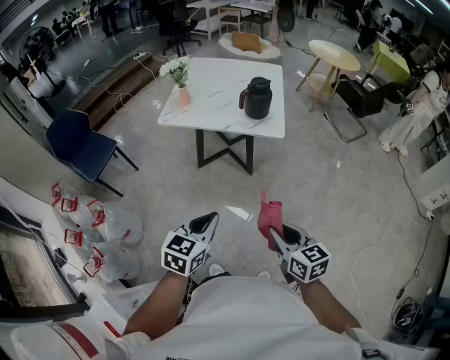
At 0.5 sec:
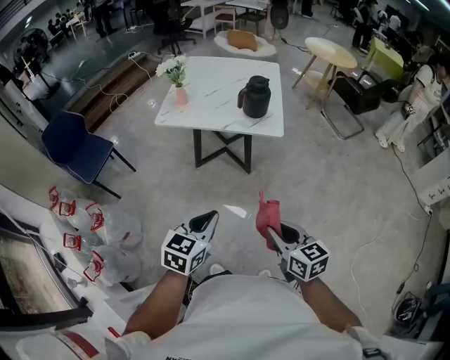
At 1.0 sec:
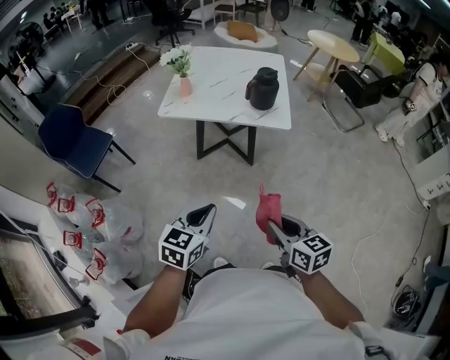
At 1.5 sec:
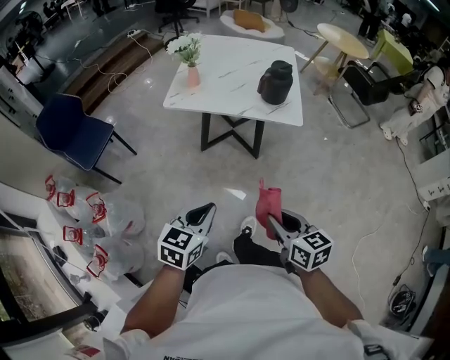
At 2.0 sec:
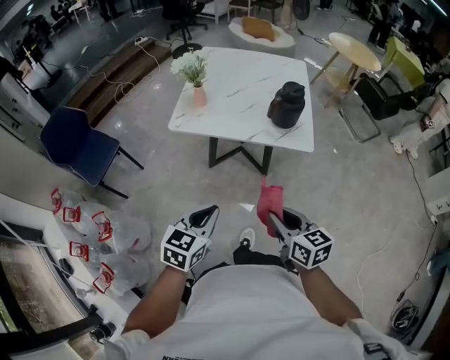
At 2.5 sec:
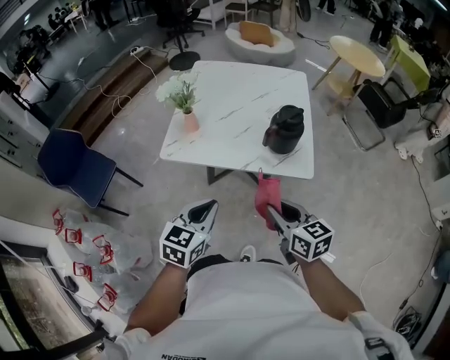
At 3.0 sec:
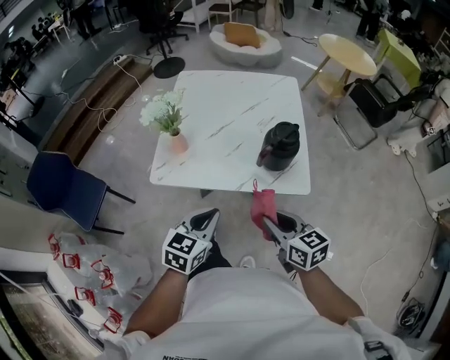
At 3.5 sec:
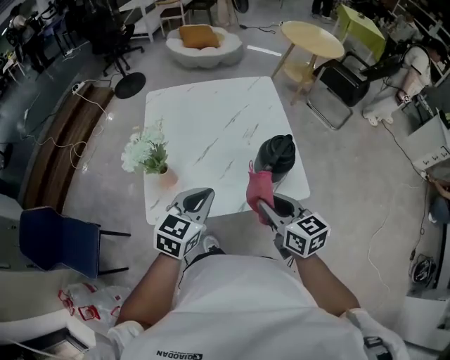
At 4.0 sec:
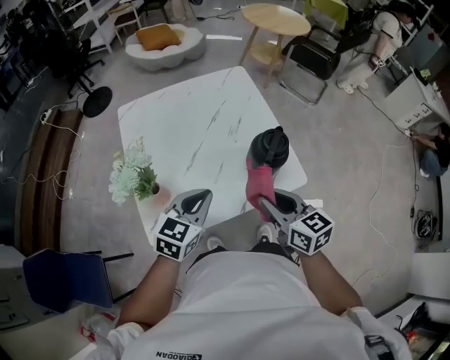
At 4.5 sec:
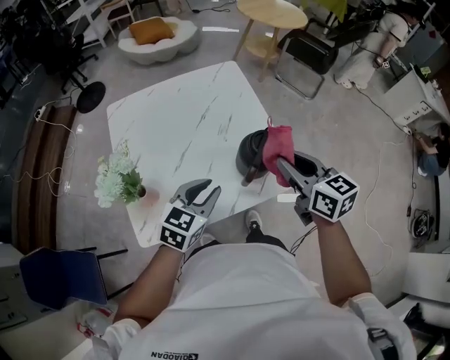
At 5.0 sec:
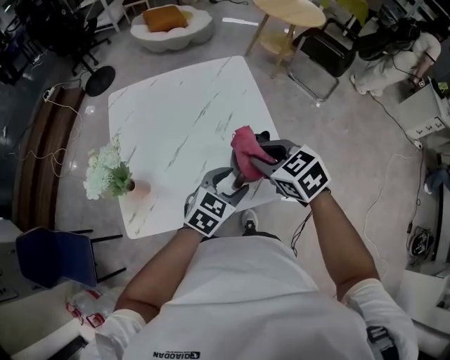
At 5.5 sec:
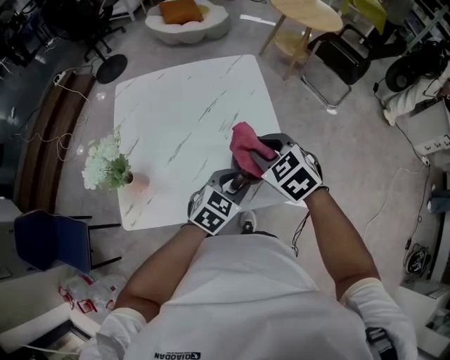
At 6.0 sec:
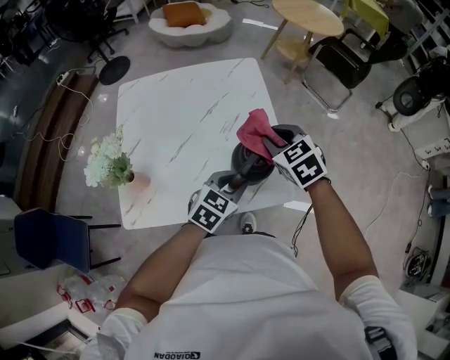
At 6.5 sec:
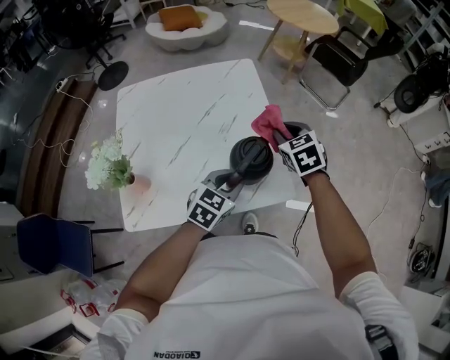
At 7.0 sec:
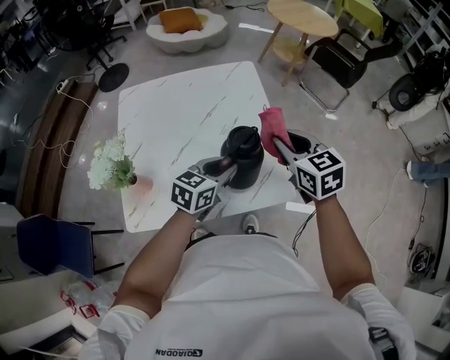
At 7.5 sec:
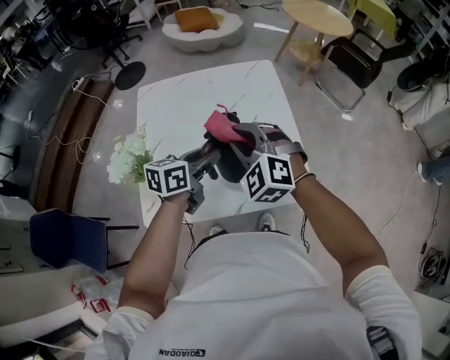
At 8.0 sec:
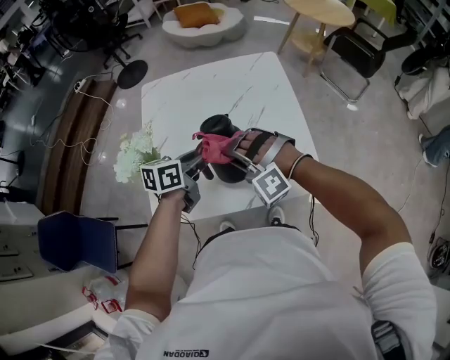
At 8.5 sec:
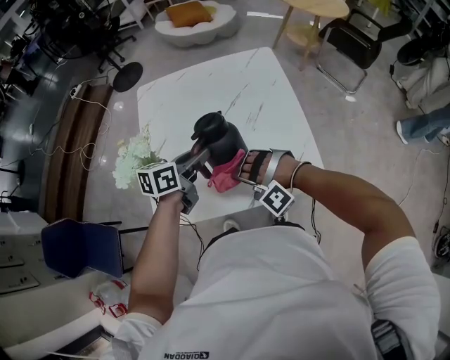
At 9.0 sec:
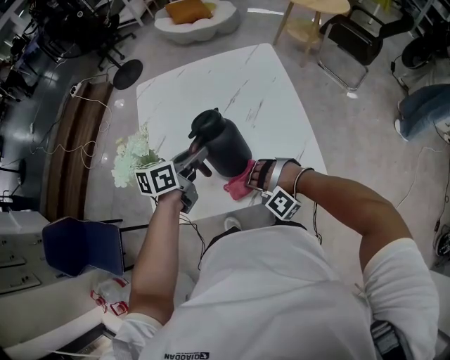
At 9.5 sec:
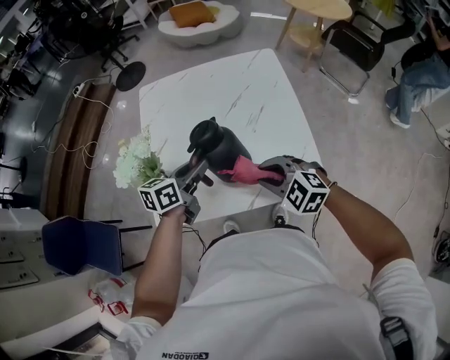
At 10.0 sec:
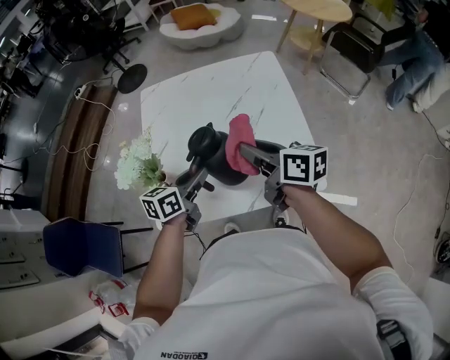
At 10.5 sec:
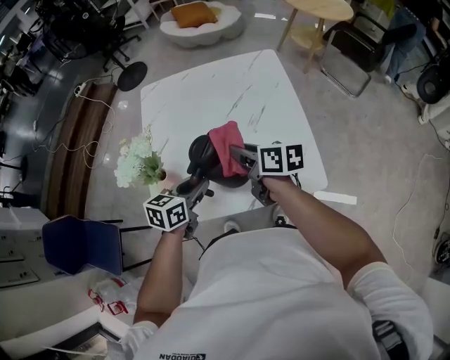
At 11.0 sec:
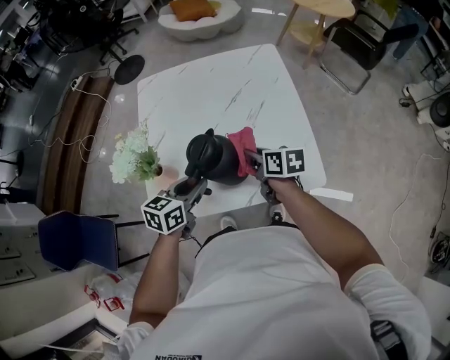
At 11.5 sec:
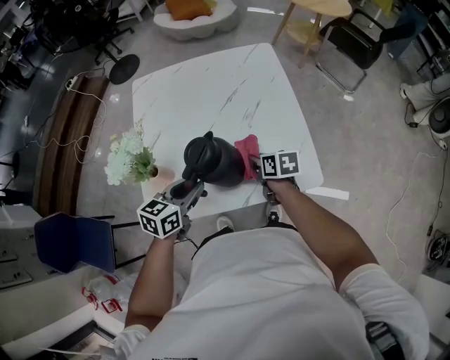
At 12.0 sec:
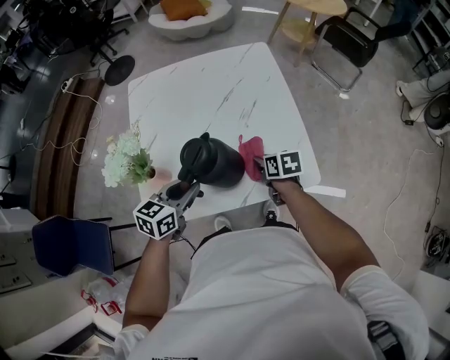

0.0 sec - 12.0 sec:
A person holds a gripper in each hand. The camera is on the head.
0.0 sec - 2.0 sec: Both grippers travel together forward and to the left, roughly 20 cm.
2.0 sec - 4.0 sec: The left gripper shifts by roughly 40 cm, and turns by roughly 30 degrees. Meanwhile the right gripper shifts by approximately 35 cm, and rotates roughly 20 degrees.
4.0 sec - 6.0 sec: The right gripper heads forward, covering about 20 cm, and swivels some 40 degrees. Meanwhile the left gripper heads to the right, forward and downward, covering approximately 20 cm, and opens up.
6.0 sec - 8.0 sec: The left gripper moves to the left, about 20 cm, and turns by about 40 degrees, while the right gripper heads to the left and backward, covering approximately 25 cm, and rotates around the line of its fingers by about 80 degrees, counterclockwise from behind.
8.0 sec - 10.0 sec: The right gripper moves to the right, roughly 10 cm, goes downward and returns, roughly 15 cm each way, and rotates around the line of its fingers by roughly 130 degrees, clockwise from behind.
10.0 sec - 12.0 sec: The right gripper heads downward, covering approximately 20 cm, and points its fingers roughly 40 degrees further downward. Meanwhile the left gripper moves approximately 5 cm.

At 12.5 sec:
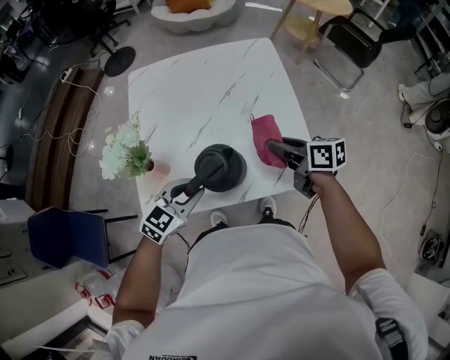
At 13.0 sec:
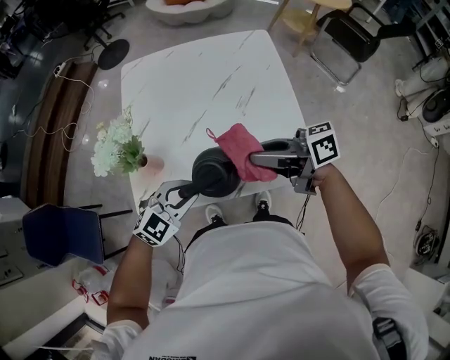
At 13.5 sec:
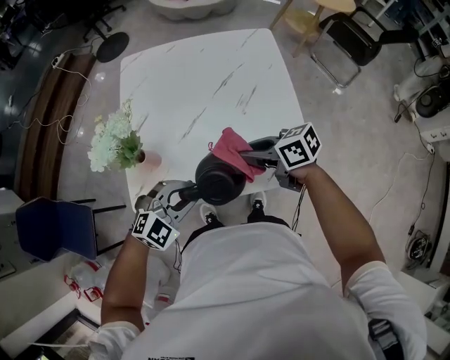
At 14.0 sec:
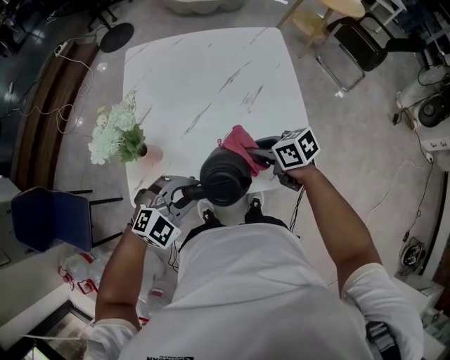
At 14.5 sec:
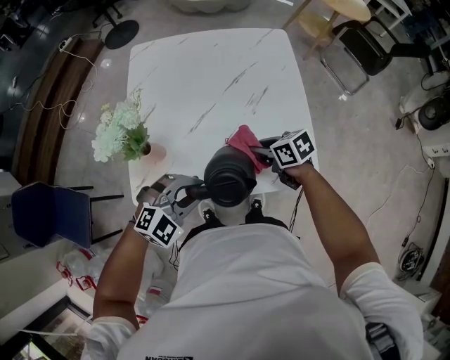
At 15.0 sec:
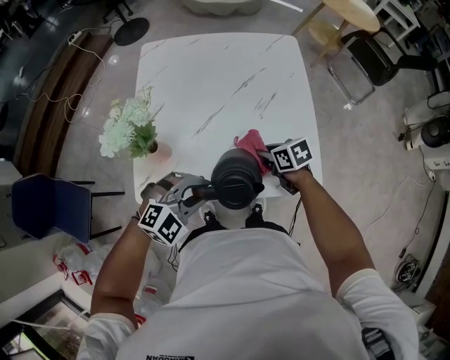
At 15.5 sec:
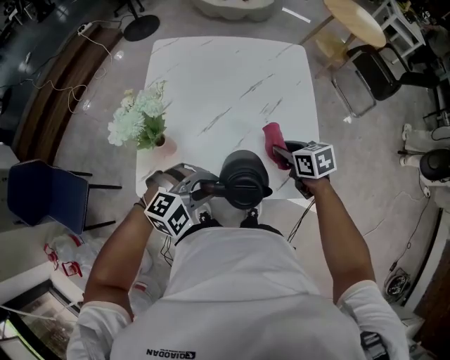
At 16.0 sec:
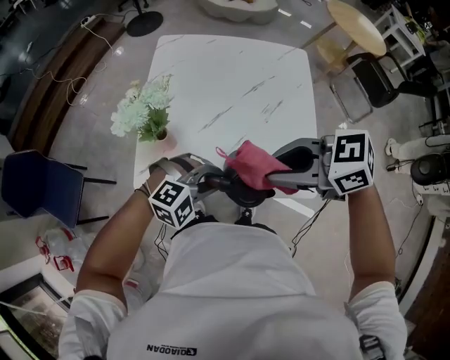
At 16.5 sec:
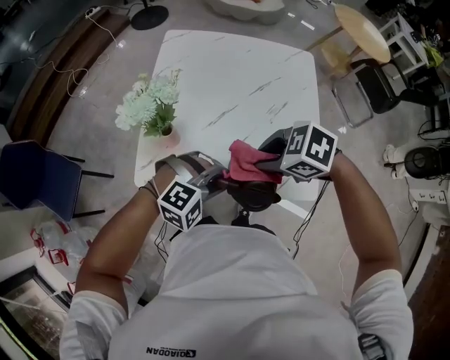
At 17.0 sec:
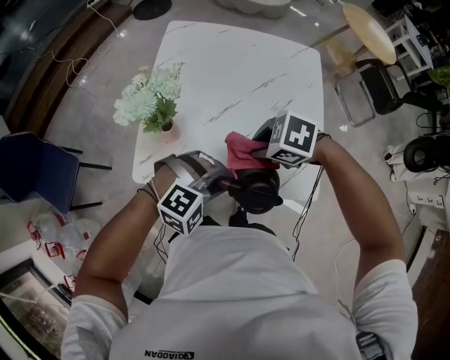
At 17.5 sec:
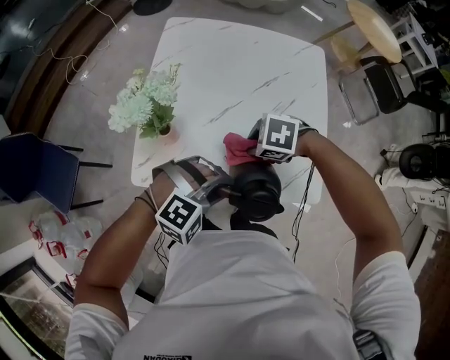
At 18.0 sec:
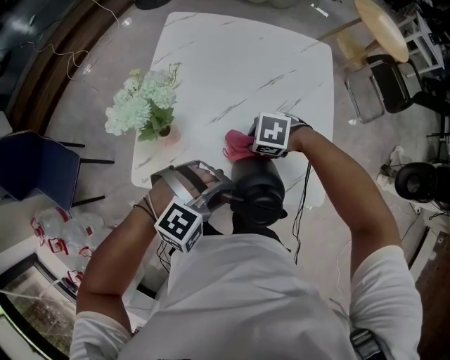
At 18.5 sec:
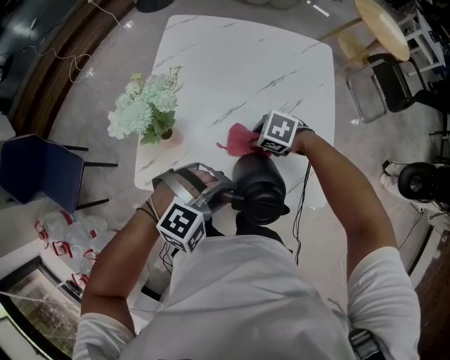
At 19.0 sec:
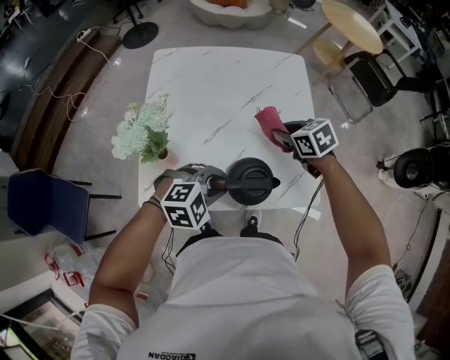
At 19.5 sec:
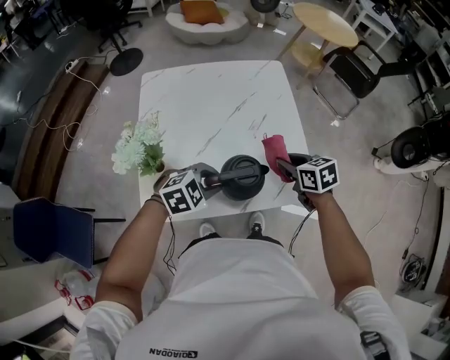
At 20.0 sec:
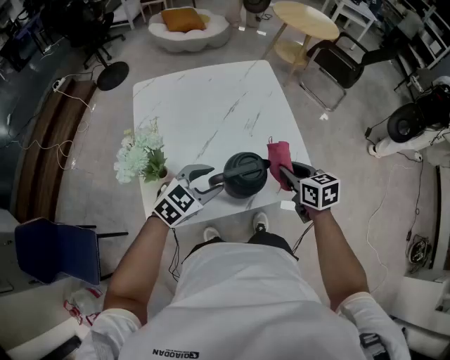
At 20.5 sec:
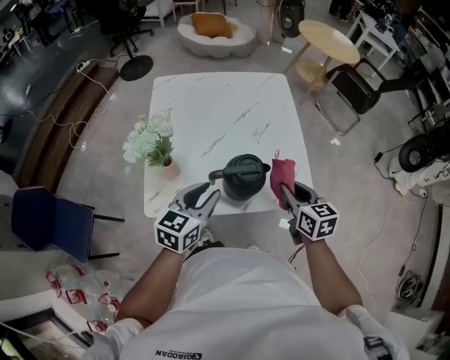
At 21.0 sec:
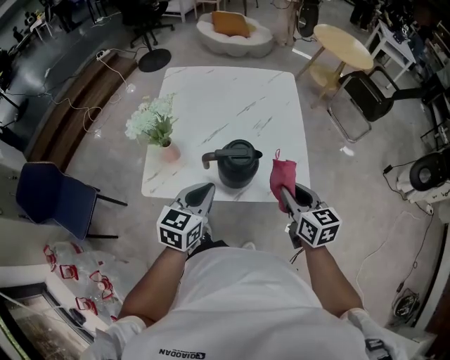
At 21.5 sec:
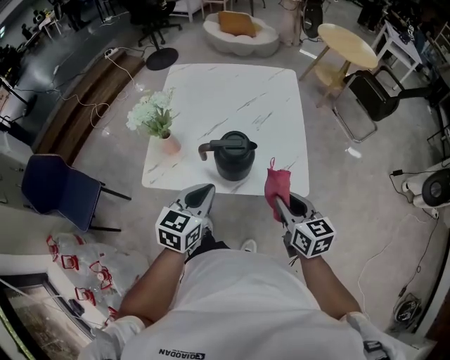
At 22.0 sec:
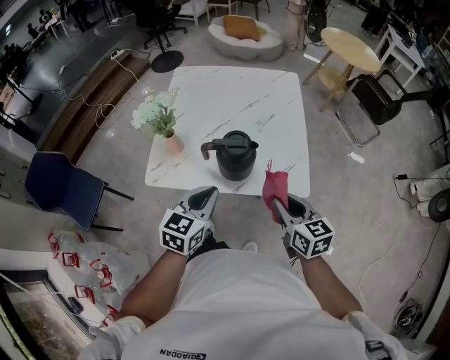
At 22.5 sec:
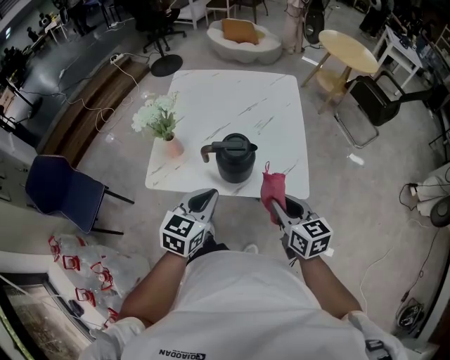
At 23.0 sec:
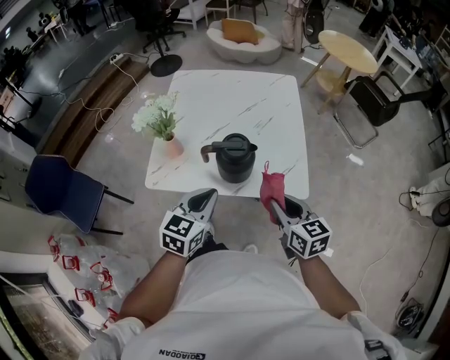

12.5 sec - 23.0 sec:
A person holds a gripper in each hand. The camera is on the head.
12.5 sec - 14.5 sec: The right gripper shifts some 10 cm downward, and turns by about 30 degrees. The left gripper rotates approximately 30 degrees.
14.5 sec - 16.5 sec: The right gripper shifts roughly 15 cm upward, and twists roughly 40 degrees counterclockwise, seen from behind.
16.5 sec - 19.0 sec: The right gripper moves roughly 20 cm, and swivels approximately 40 degrees. Meanwhile the left gripper changes its angle by approximately 20 degrees.
19.0 sec - 21.0 sec: The right gripper shifts some 25 cm backward and to the right, and rotates about 30 degrees; the left gripper goes roughly 10 cm upward and backward, rotates approximately 70 degrees, and closes its fingers.
21.0 sec - 23.0 sec: The two grippers go roughly 5 cm backward.

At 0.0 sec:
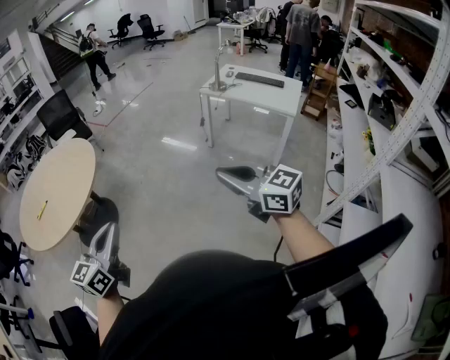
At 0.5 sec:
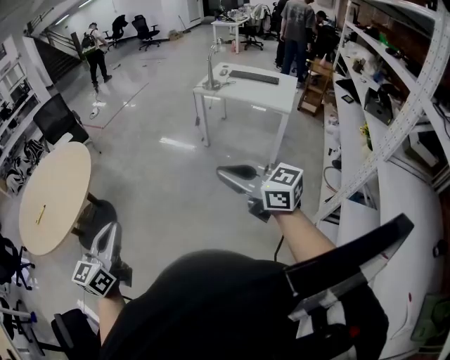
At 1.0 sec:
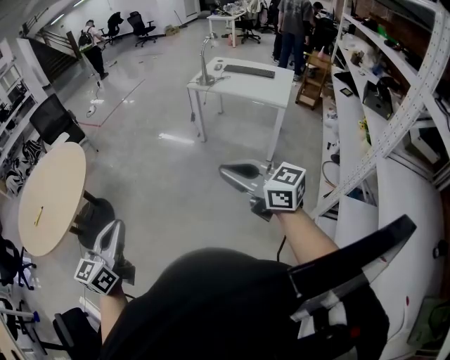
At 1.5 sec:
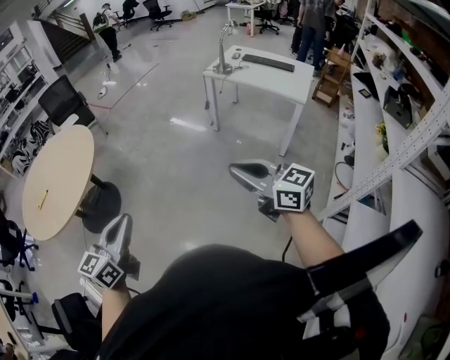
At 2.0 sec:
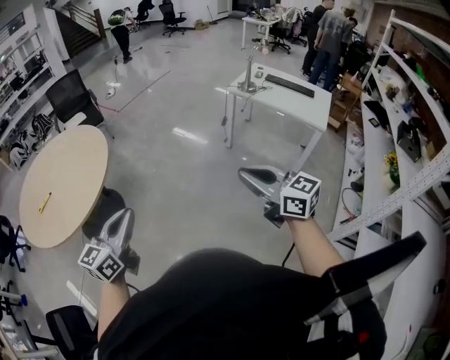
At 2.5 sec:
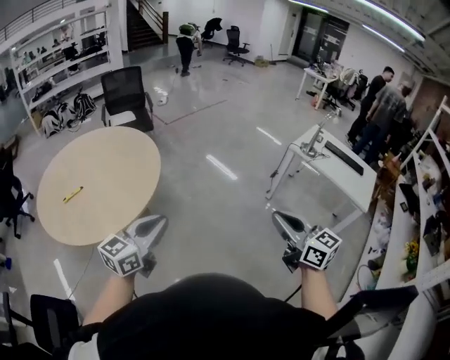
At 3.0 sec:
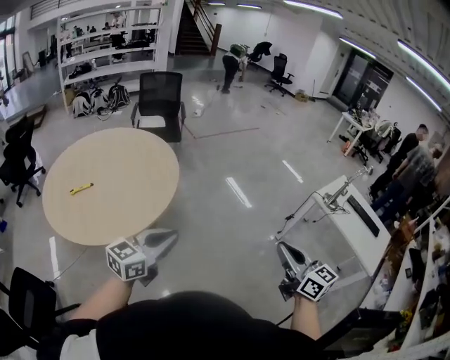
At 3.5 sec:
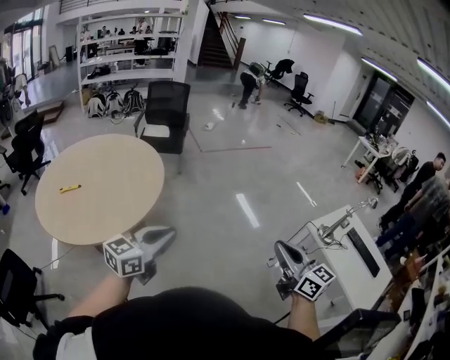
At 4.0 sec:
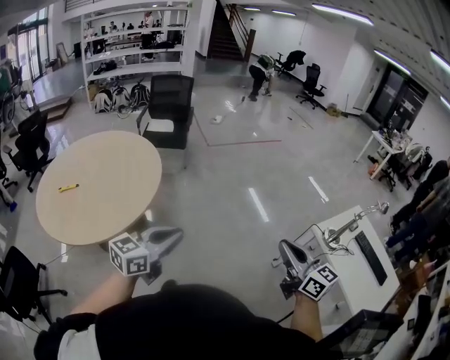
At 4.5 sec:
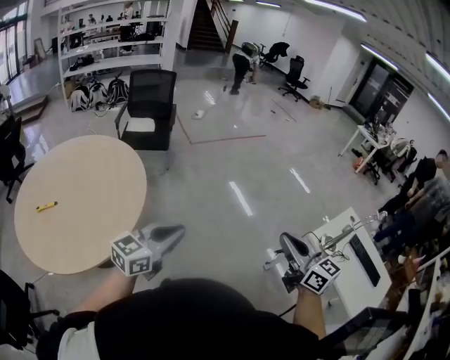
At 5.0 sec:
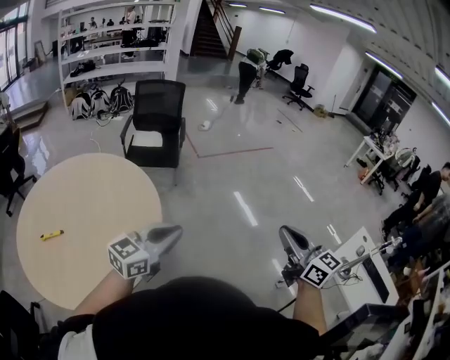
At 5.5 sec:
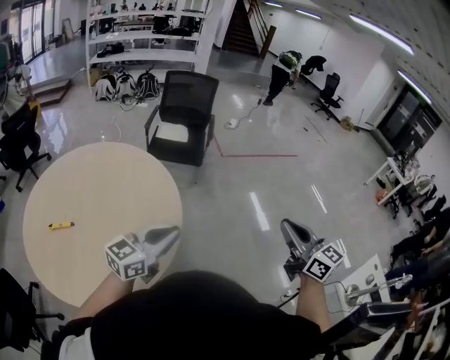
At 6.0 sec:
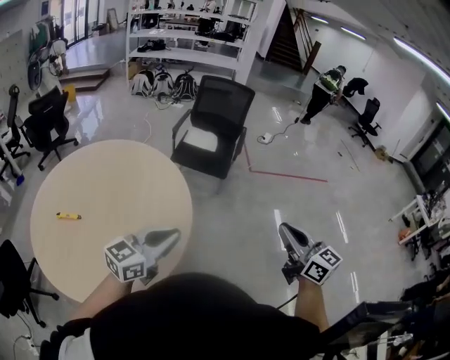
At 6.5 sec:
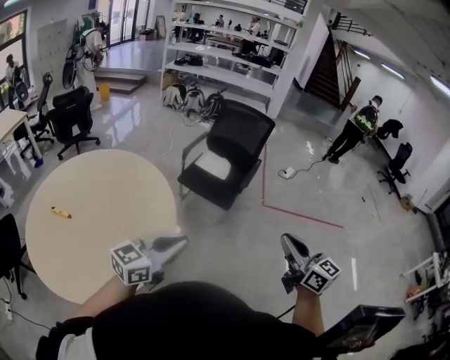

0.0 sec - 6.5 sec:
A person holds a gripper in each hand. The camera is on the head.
0.0 sec - 2.0 sec: The grippers both shift forward by some 15 cm.
2.0 sec - 4.5 sec: The pair of grippers is taken forward, roughly 60 cm.
4.5 sec - 6.5 sec: The two grippers travel together, roughly 50 cm. The right gripper rotates about 30 degrees, while the left gripper changes its angle by approximately 30 degrees.
